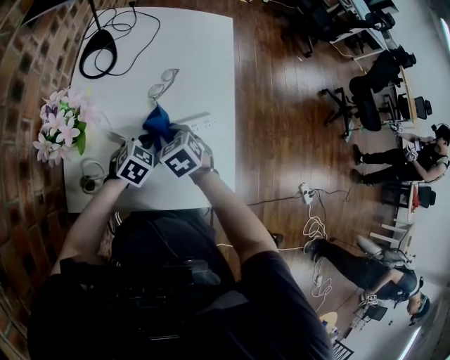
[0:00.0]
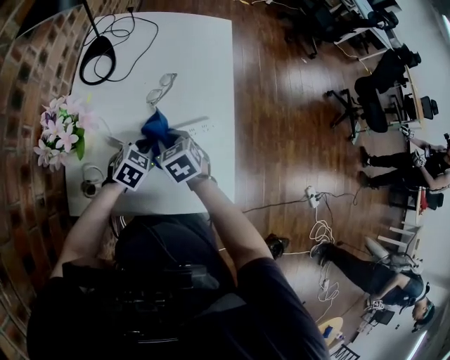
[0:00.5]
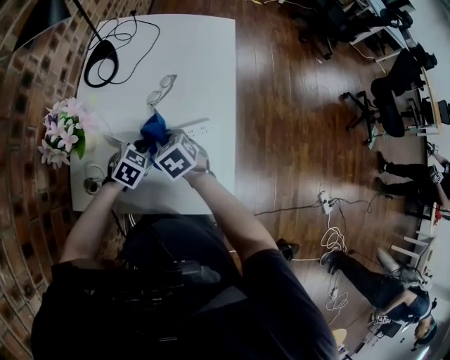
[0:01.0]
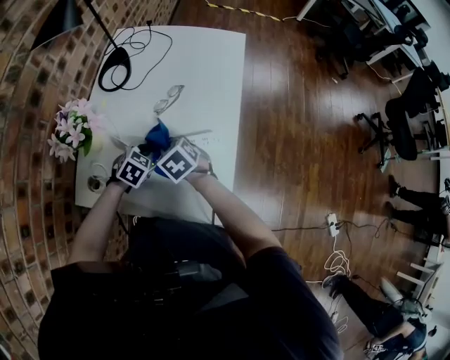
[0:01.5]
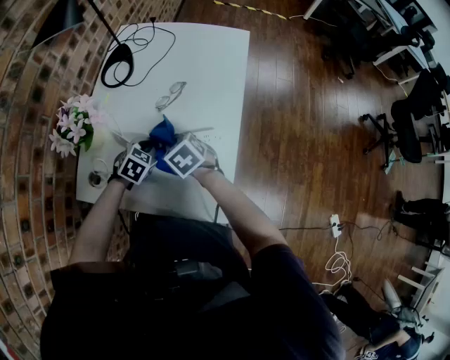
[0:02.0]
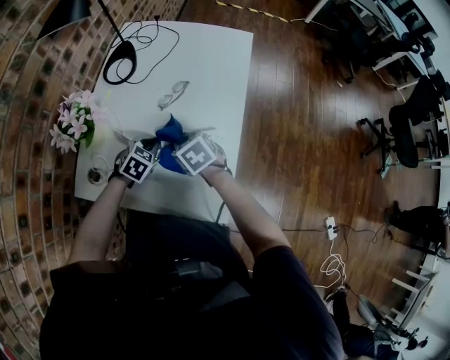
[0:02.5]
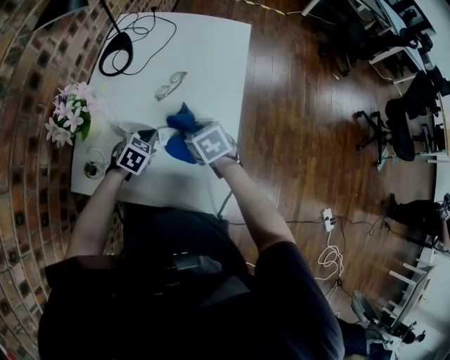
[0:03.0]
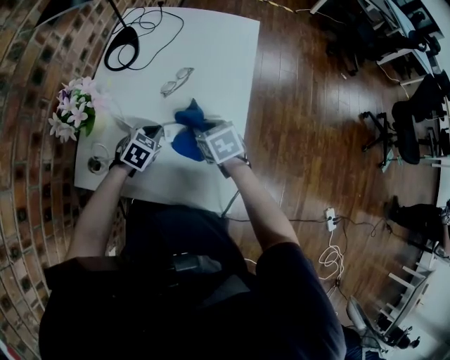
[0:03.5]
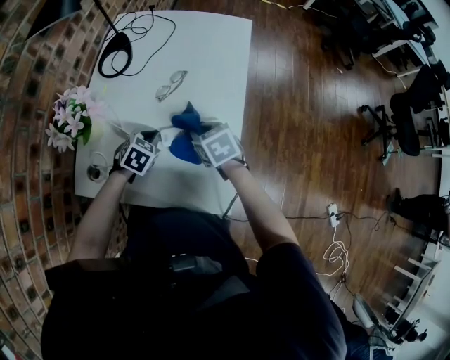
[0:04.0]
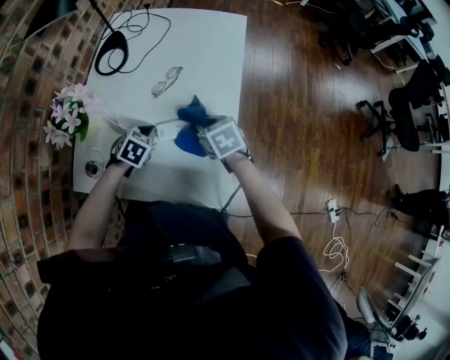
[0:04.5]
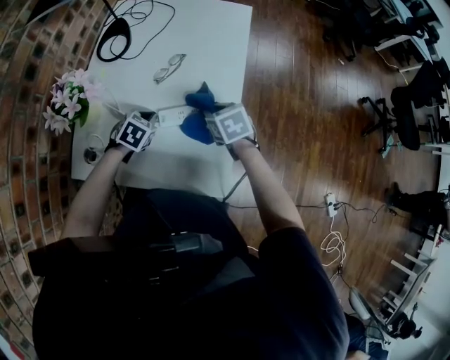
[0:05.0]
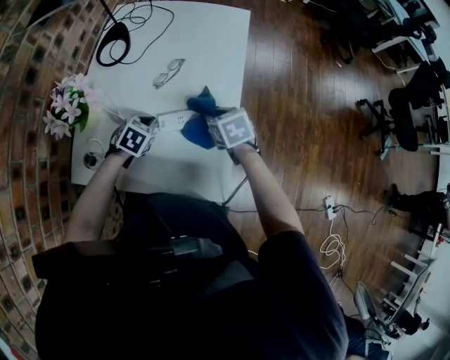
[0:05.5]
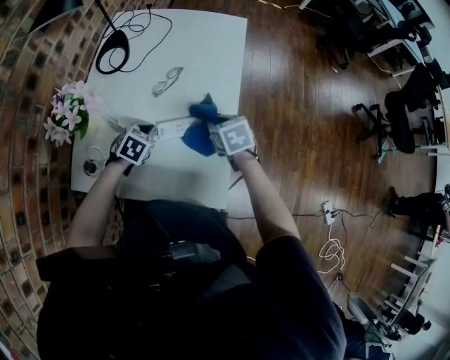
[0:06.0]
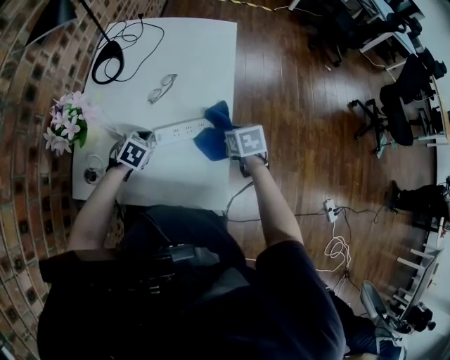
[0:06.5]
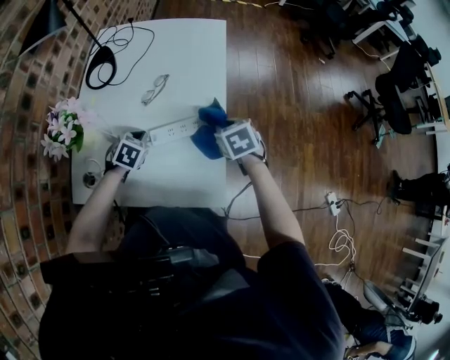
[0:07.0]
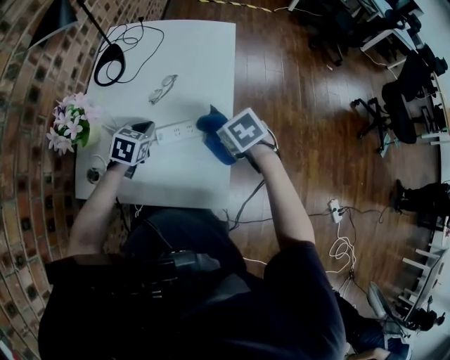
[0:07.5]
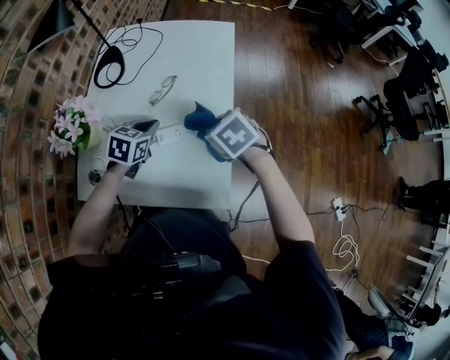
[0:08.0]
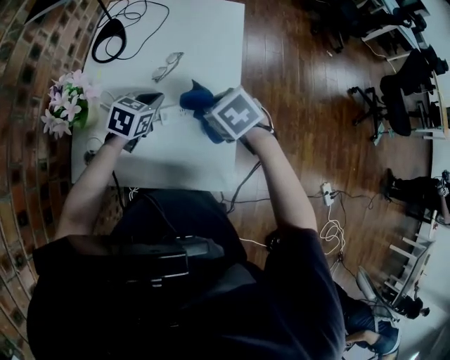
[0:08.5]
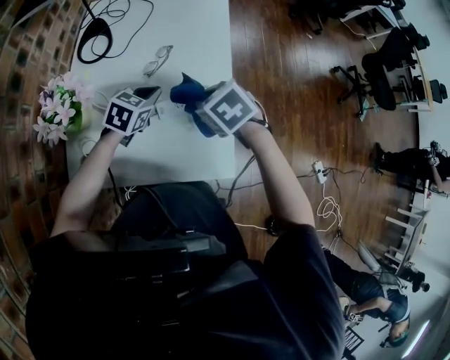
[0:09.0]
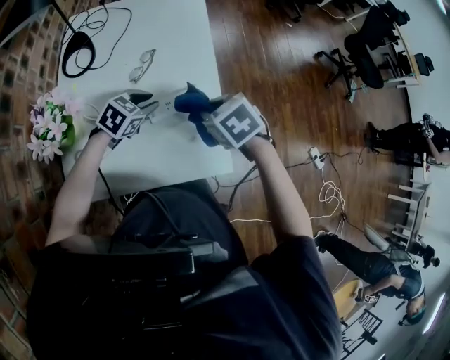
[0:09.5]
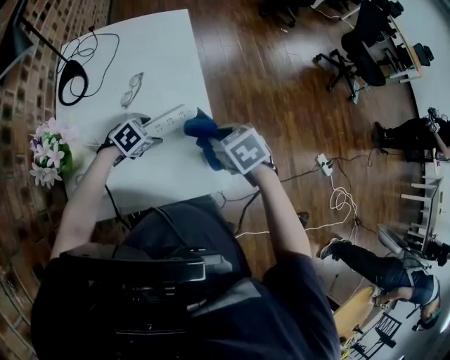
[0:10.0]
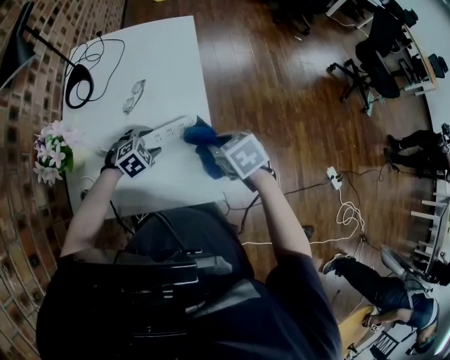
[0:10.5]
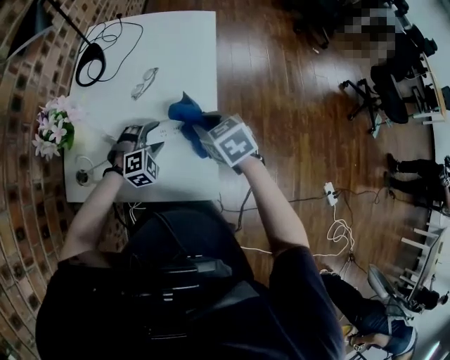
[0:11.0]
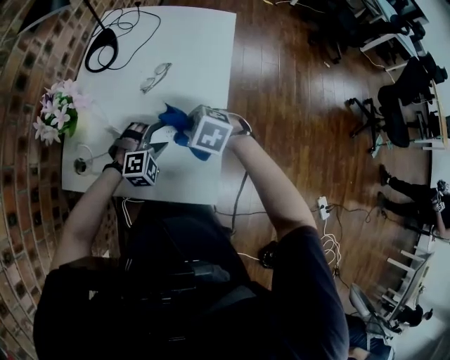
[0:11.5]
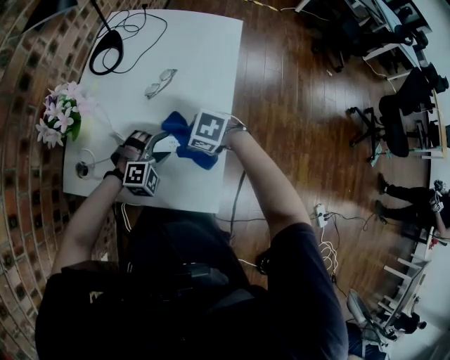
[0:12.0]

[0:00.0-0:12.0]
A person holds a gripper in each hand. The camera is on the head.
0:00.0 to 0:02.0: There are only small adjustments of the grippers.
0:02.0 to 0:04.0: The right gripper heads to the right, covering roughly 10 cm.
0:04.0 to 0:06.0: The right gripper goes about 5 cm to the right.
0:06.0 to 0:08.0: The grippers both shift upward by roughly 10 cm.
0:08.0 to 0:10.0: The right gripper shifts by roughly 10 cm. Meanwhile the left gripper moves downward, some 10 cm, rotates roughly 50 degrees, and opens.
0:10.0 to 0:12.0: The left gripper rotates approximately 40 degrees. Meanwhile the right gripper ends up about 15 cm from where it was, rotates roughly 60 degrees, and opens up.

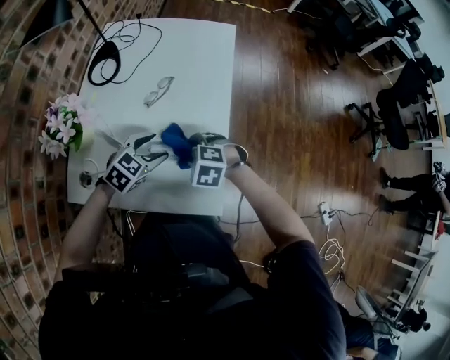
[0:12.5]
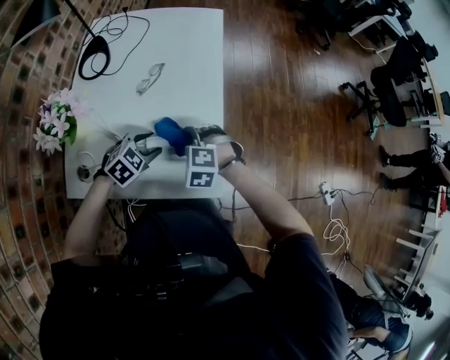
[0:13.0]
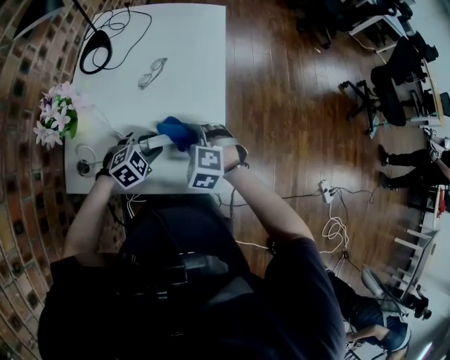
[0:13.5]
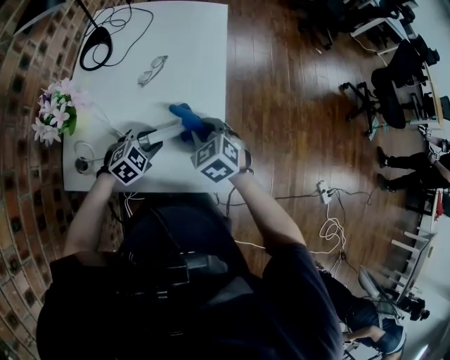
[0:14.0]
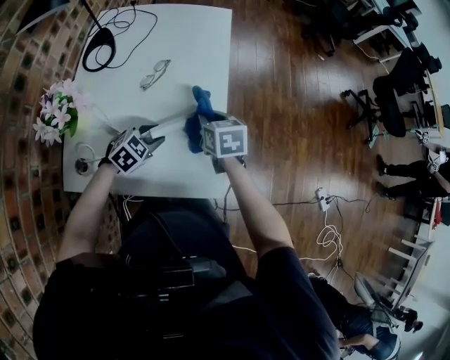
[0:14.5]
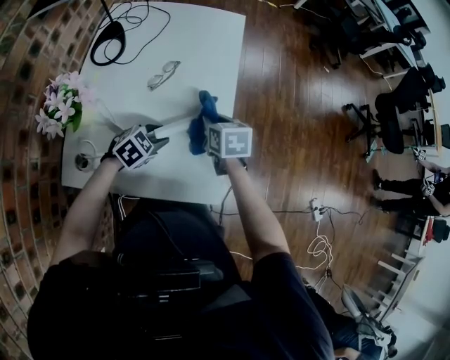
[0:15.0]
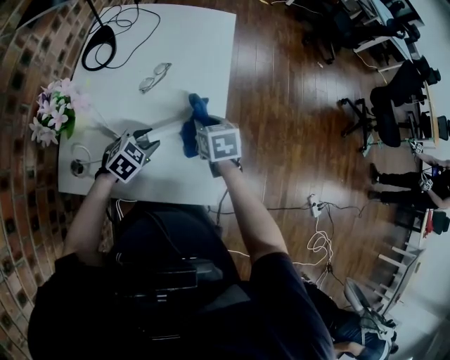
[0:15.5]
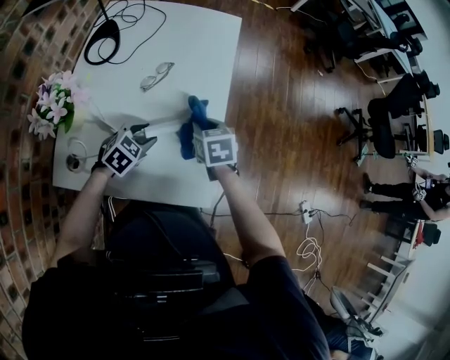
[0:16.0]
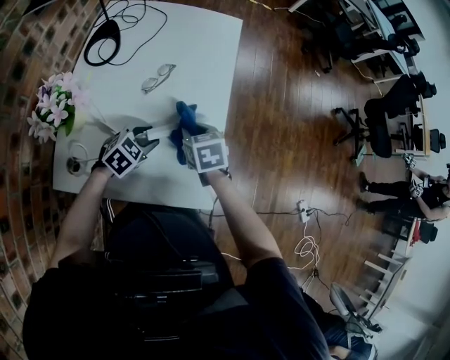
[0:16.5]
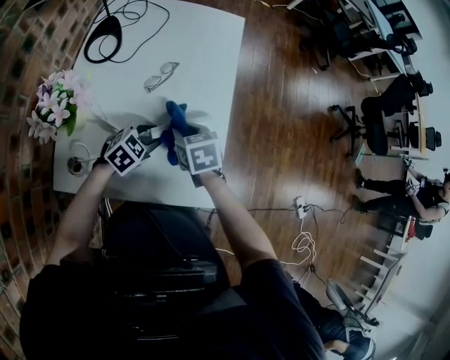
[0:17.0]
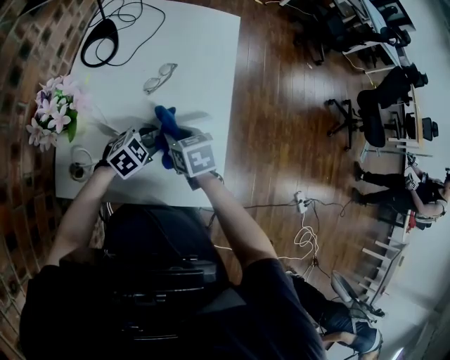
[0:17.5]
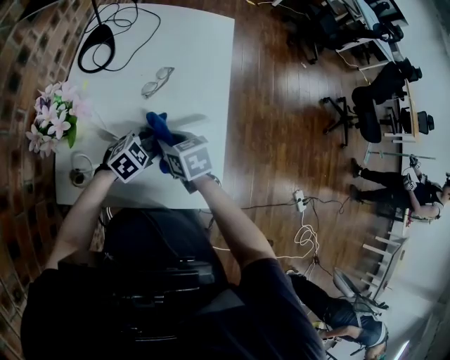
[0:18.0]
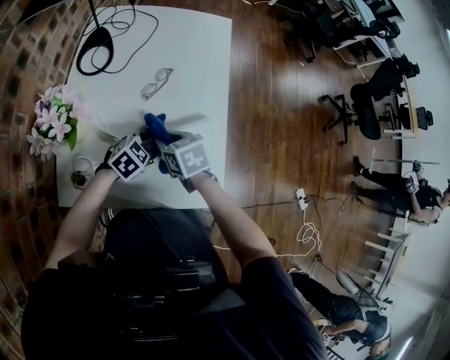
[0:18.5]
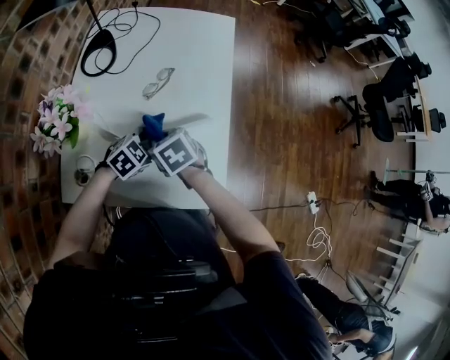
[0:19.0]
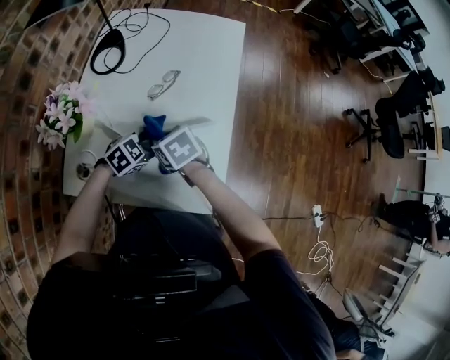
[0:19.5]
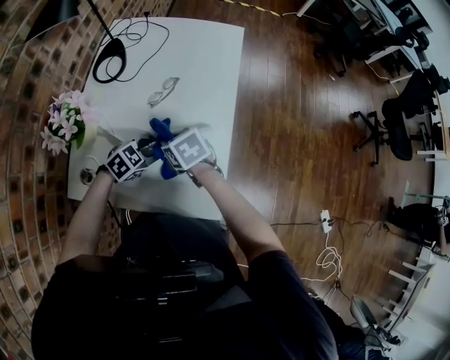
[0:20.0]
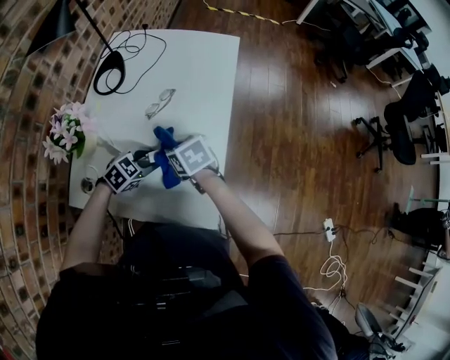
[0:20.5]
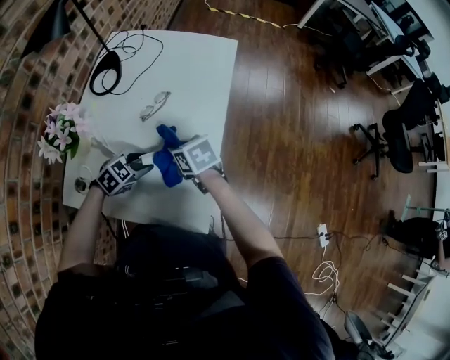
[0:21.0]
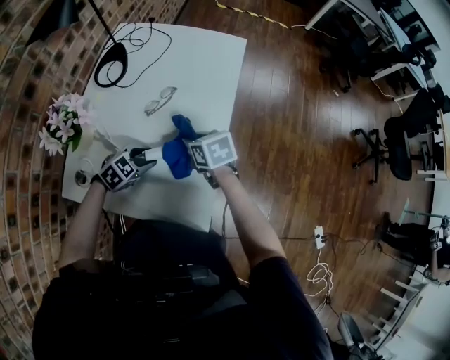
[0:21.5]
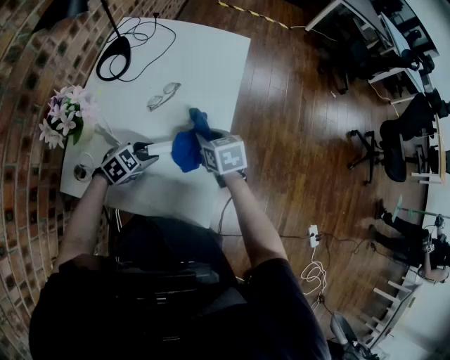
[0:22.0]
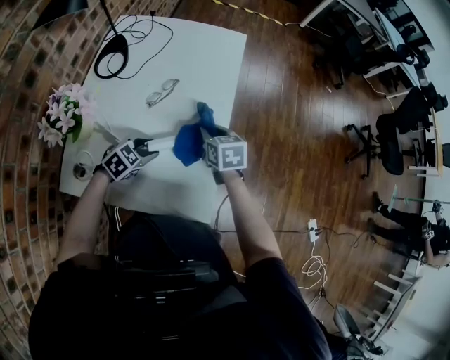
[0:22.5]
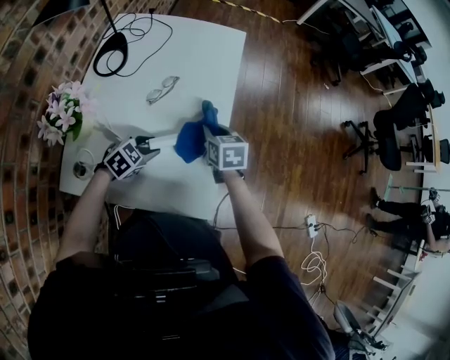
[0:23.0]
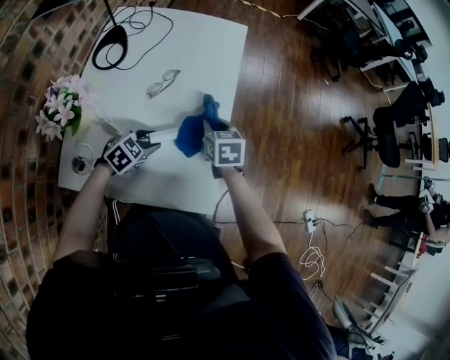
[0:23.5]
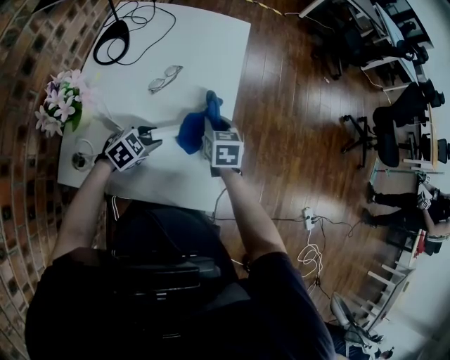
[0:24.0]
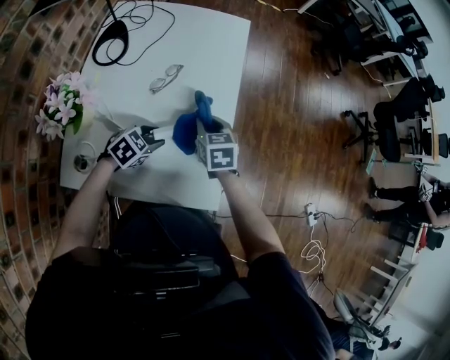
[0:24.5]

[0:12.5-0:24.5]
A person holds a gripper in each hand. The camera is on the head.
0:12.5 to 0:14.5: The right gripper is displaced forward and to the right by some 10 cm, rotates around the line of its fingers by some 70 degrees, clockwise from behind, and closes its fingers, while the left gripper closes.
0:14.5 to 0:16.5: The right gripper travels to the left by approximately 5 cm.
0:16.5 to 0:18.5: The right gripper heads to the left, covering some 10 cm.
0:18.5 to 0:20.5: The grippers move only a little.
0:20.5 to 0:22.5: The right gripper heads to the right and forward, covering approximately 10 cm, and turns by roughly 20 degrees.
0:22.5 to 0:24.5: The grippers move only a little.

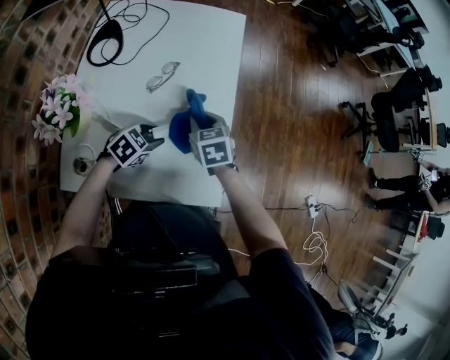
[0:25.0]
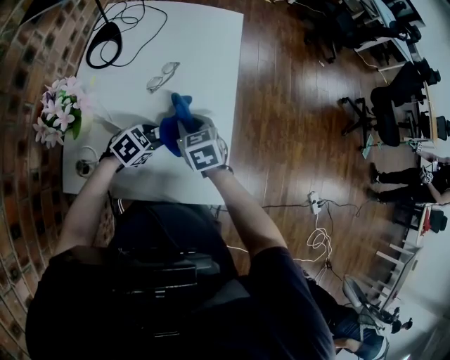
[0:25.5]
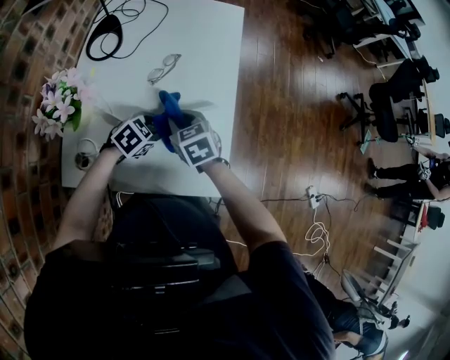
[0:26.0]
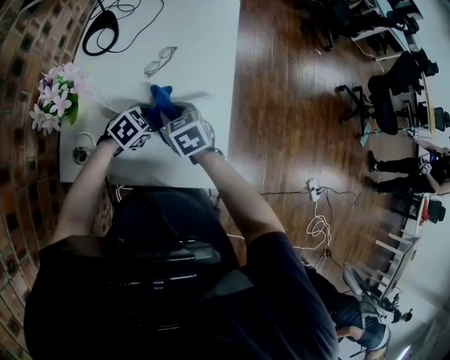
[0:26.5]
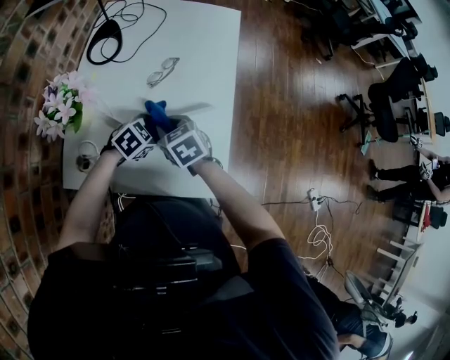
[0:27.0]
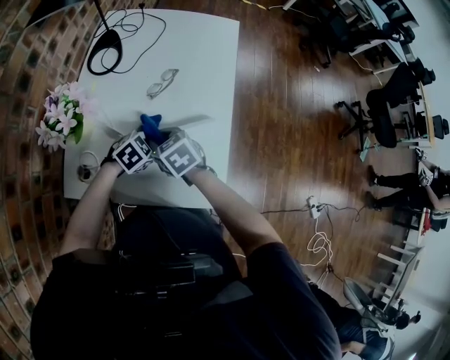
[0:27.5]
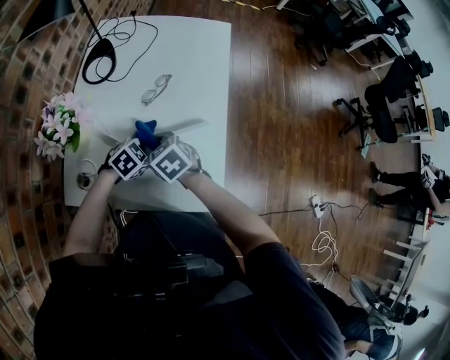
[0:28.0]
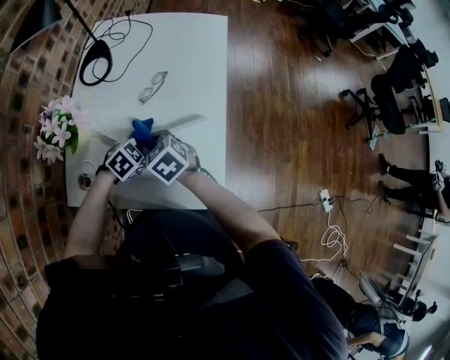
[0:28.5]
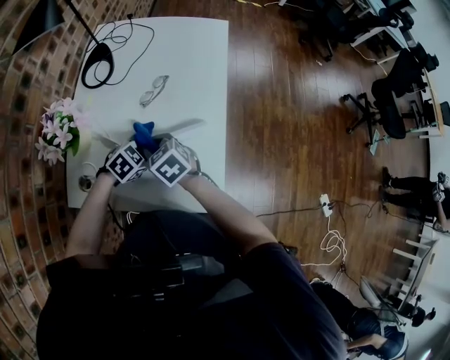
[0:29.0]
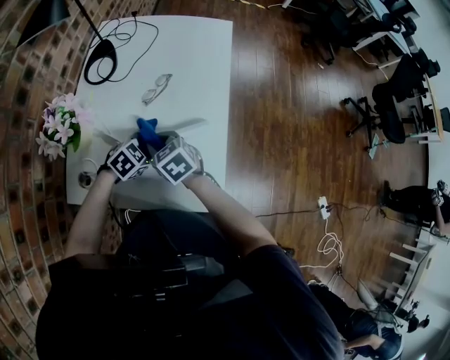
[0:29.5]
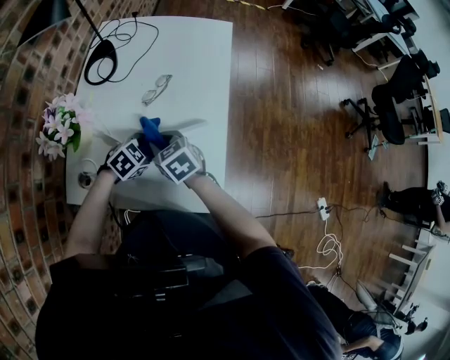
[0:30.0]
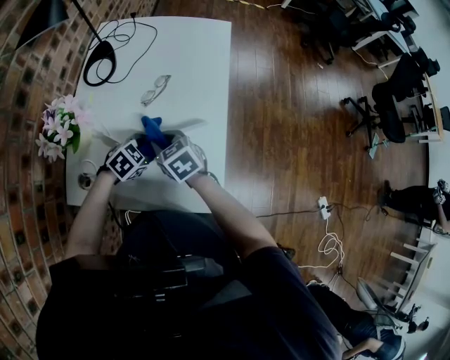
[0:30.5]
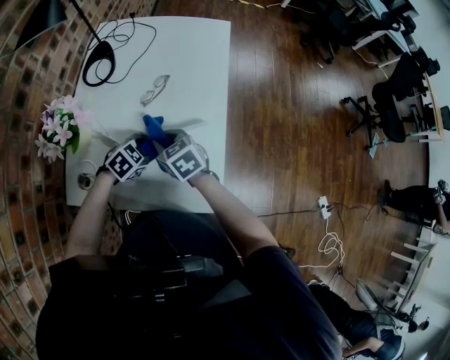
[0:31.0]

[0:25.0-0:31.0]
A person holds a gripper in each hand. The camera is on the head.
0:25.0 to 0:27.0: The right gripper goes some 10 cm to the left and backward.
0:27.0 to 0:31.0: The grippers move only a little.
